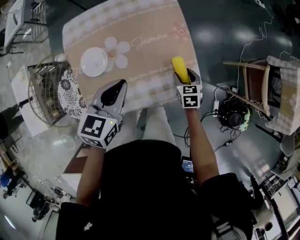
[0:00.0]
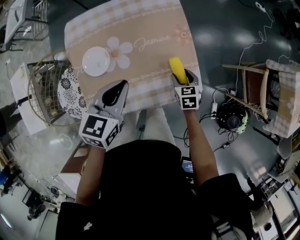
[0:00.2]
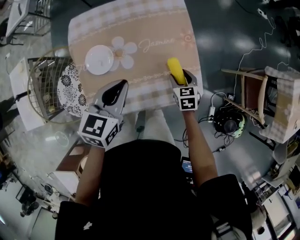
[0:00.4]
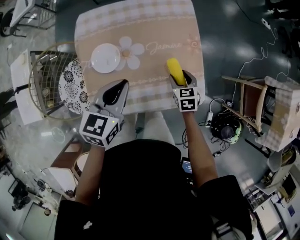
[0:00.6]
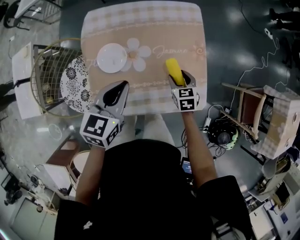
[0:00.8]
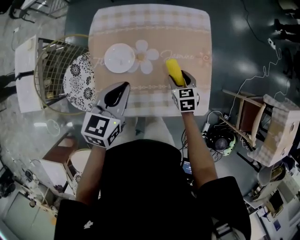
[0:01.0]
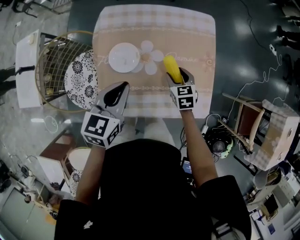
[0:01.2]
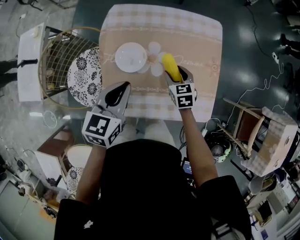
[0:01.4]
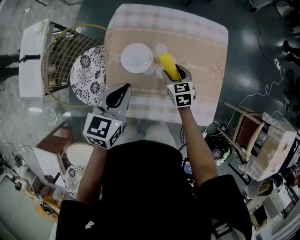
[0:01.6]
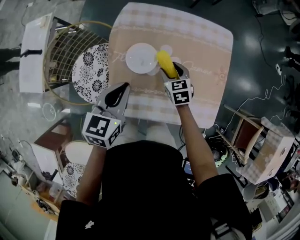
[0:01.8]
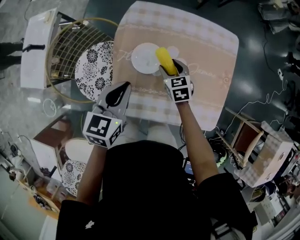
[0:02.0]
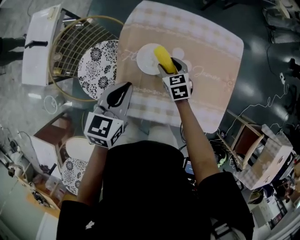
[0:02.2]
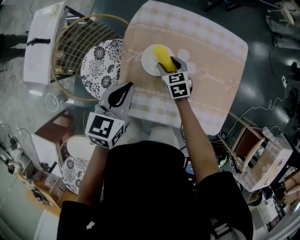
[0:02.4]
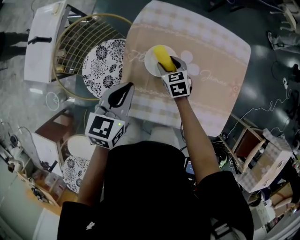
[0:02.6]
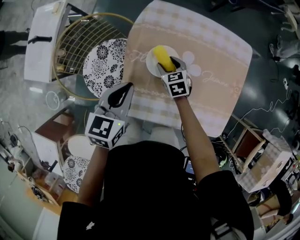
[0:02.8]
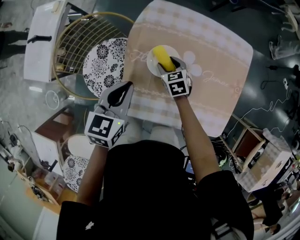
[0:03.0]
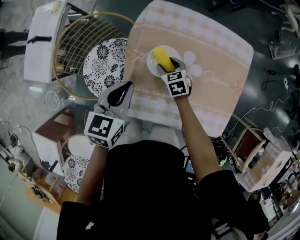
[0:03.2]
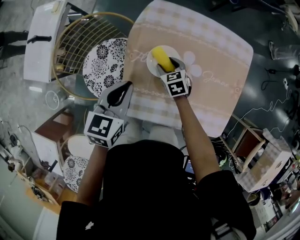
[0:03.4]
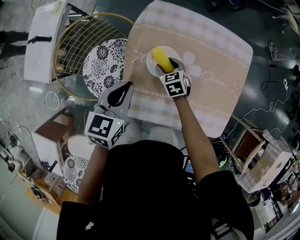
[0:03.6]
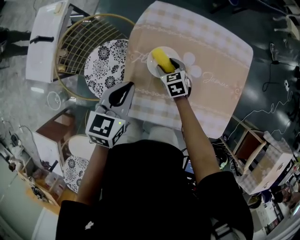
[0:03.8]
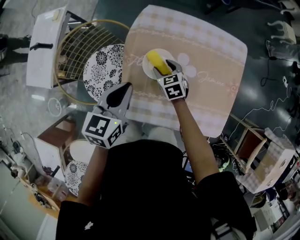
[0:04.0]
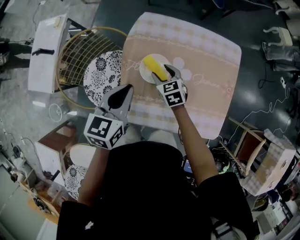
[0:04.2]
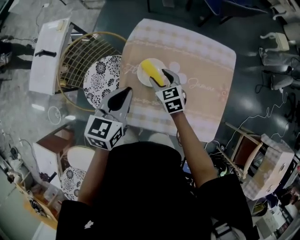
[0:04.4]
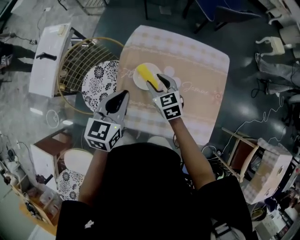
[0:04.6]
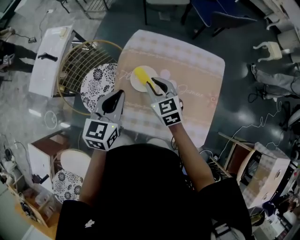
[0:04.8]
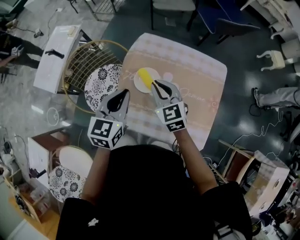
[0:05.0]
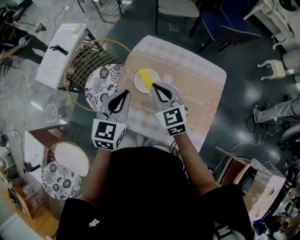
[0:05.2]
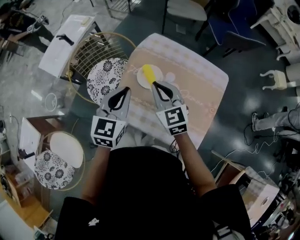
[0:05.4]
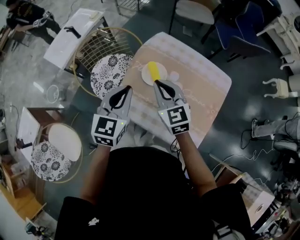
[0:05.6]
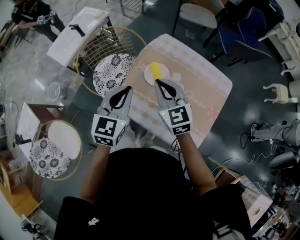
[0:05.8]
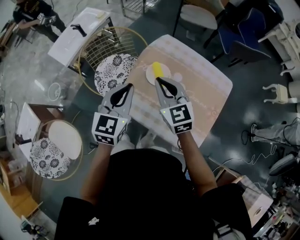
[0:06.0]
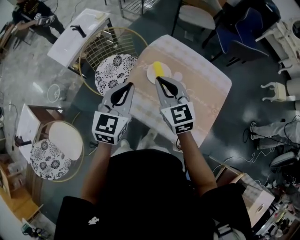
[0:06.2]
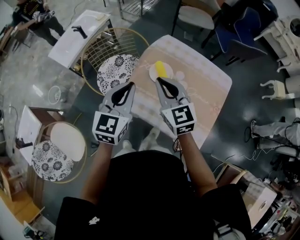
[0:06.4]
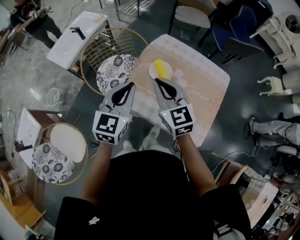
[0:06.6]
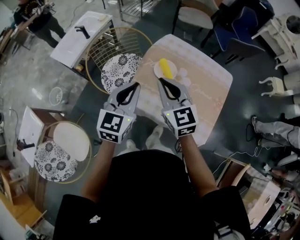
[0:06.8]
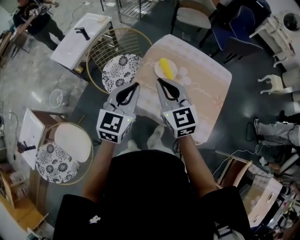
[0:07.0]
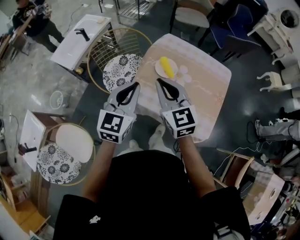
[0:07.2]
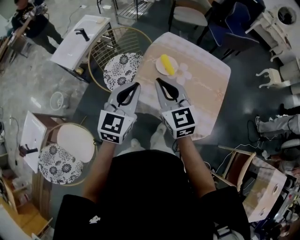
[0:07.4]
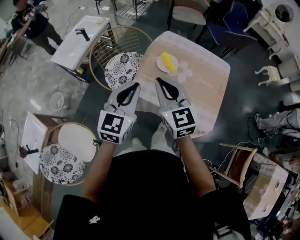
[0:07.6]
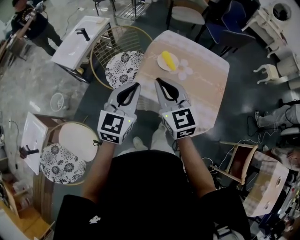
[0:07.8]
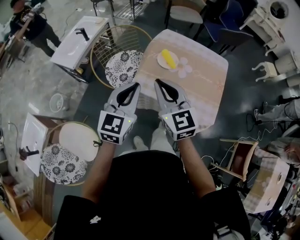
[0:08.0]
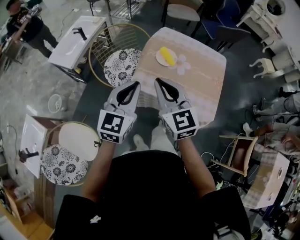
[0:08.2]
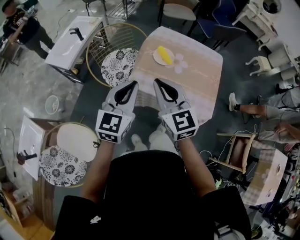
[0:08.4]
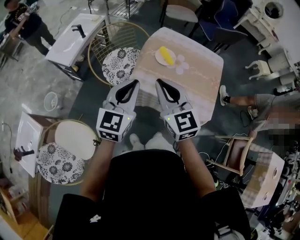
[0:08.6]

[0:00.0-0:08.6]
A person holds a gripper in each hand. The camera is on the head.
0.0 to 1.4 s: The two grippers go approximately 20 cm to the left. The right gripper swivels about 30 degrees.
1.4 to 2.8 s: The left gripper heads to the left, covering roughly 10 cm. Meanwhile the right gripper shifts some 20 cm to the left.
2.8 to 4.4 s: The left gripper is displaced upward by roughly 5 cm; the right gripper moves upward, about 10 cm.
4.4 to 5.8 s: The left gripper is displaced backward and upward by some 15 cm, and turns by roughly 30 degrees. The right gripper goes roughly 25 cm upward and backward, changes its angle by some 30 degrees, and closes.
5.8 to 7.2 s: The left gripper heads backward and to the left, covering roughly 10 cm. The right gripper moves backward, to the left and upward, roughly 15 cm.
7.2 to 8.6 s: The grippers both shift backward and to the left by approximately 10 cm.

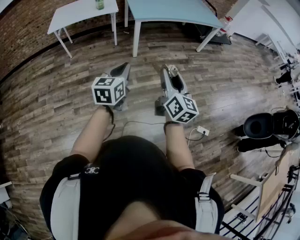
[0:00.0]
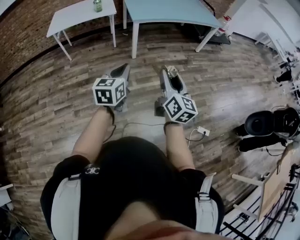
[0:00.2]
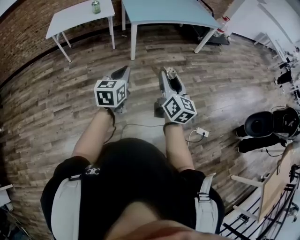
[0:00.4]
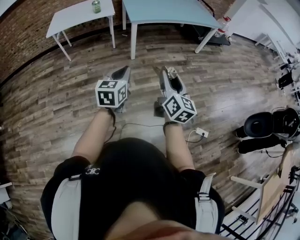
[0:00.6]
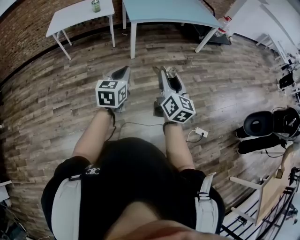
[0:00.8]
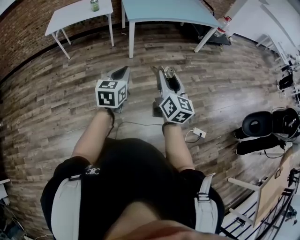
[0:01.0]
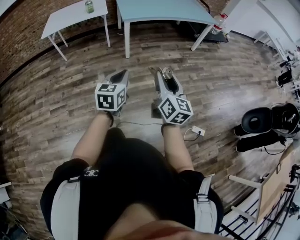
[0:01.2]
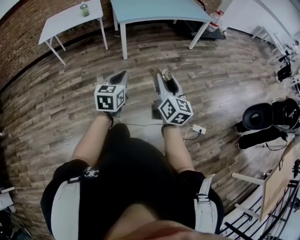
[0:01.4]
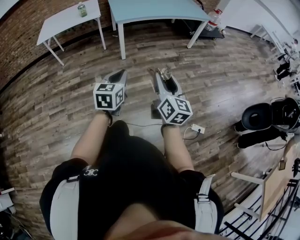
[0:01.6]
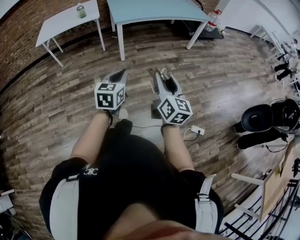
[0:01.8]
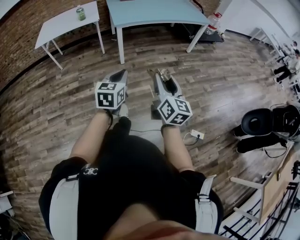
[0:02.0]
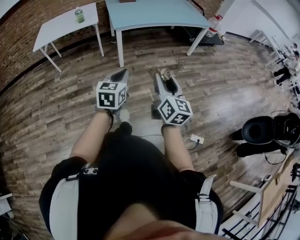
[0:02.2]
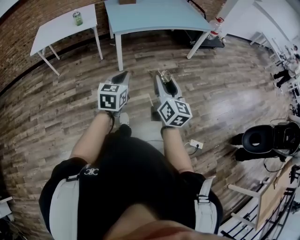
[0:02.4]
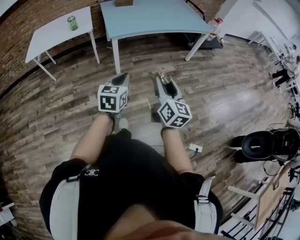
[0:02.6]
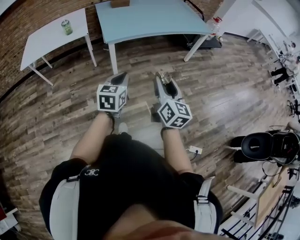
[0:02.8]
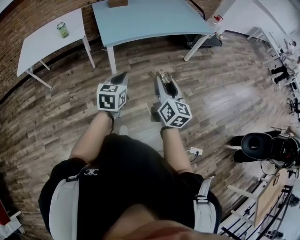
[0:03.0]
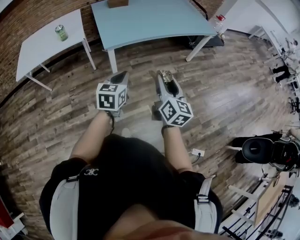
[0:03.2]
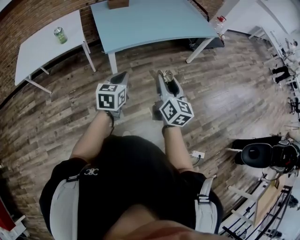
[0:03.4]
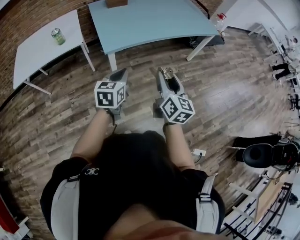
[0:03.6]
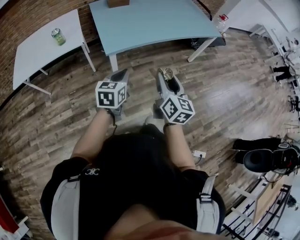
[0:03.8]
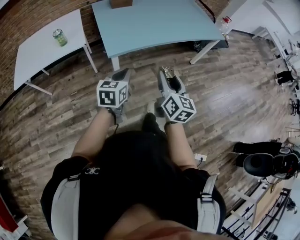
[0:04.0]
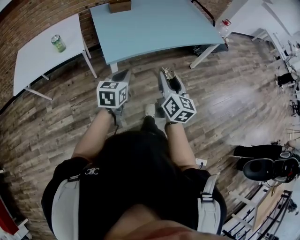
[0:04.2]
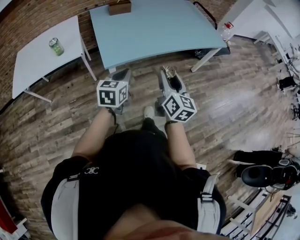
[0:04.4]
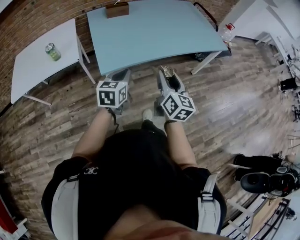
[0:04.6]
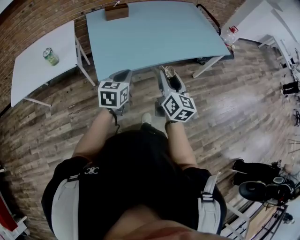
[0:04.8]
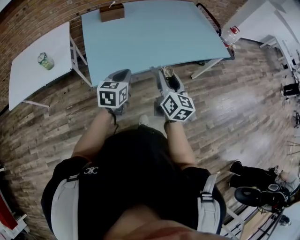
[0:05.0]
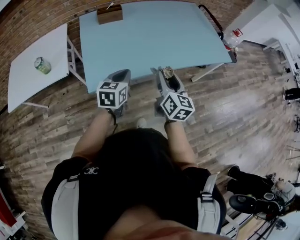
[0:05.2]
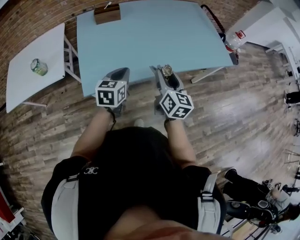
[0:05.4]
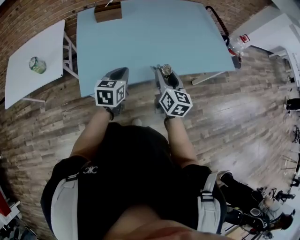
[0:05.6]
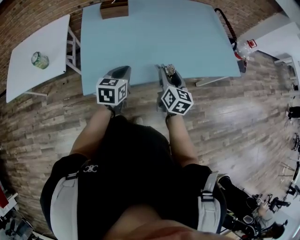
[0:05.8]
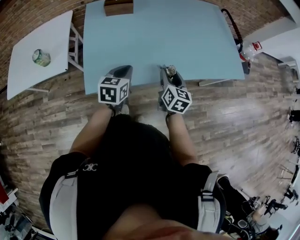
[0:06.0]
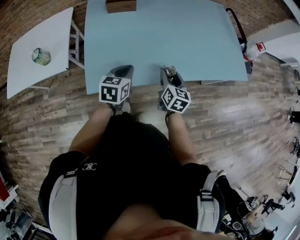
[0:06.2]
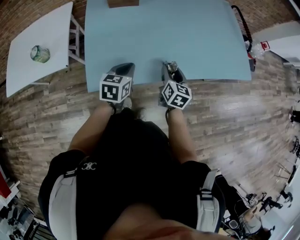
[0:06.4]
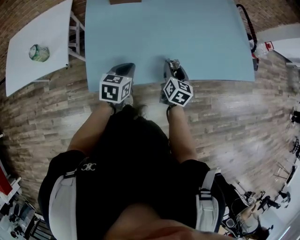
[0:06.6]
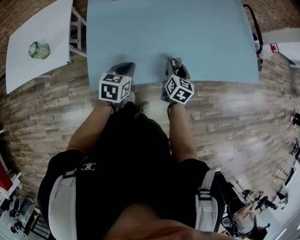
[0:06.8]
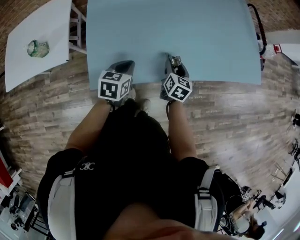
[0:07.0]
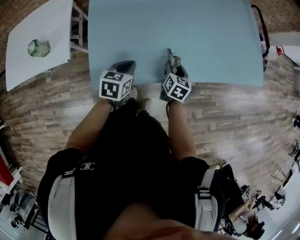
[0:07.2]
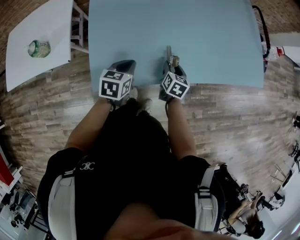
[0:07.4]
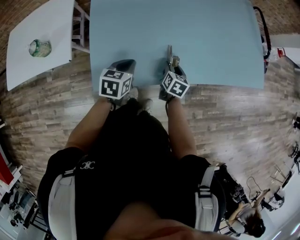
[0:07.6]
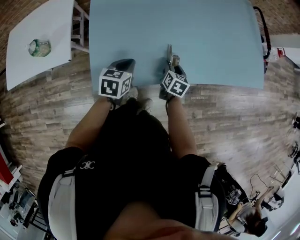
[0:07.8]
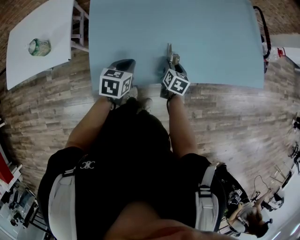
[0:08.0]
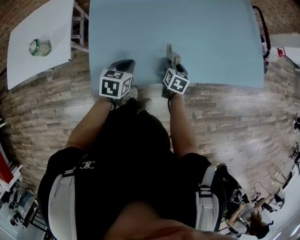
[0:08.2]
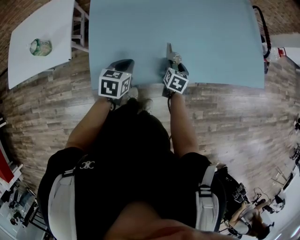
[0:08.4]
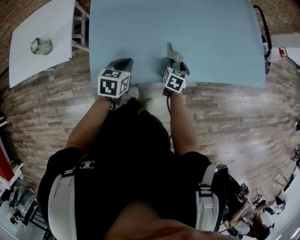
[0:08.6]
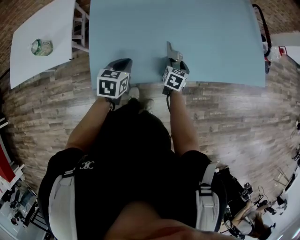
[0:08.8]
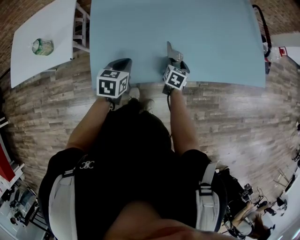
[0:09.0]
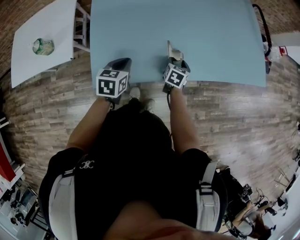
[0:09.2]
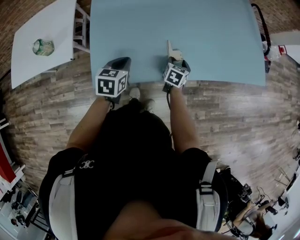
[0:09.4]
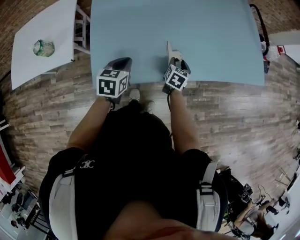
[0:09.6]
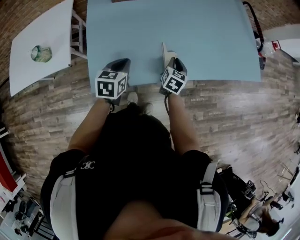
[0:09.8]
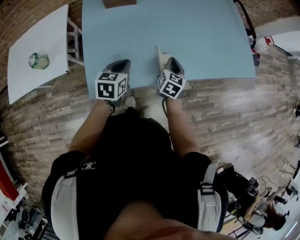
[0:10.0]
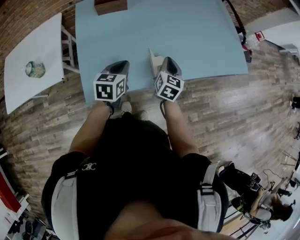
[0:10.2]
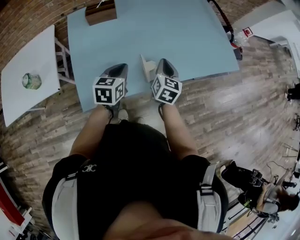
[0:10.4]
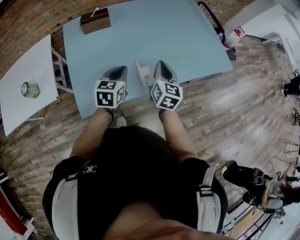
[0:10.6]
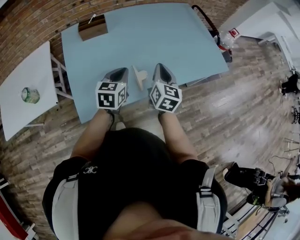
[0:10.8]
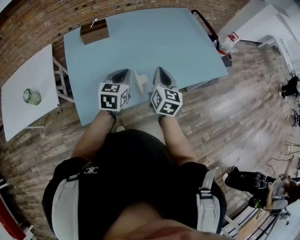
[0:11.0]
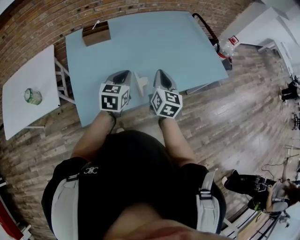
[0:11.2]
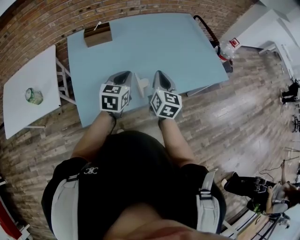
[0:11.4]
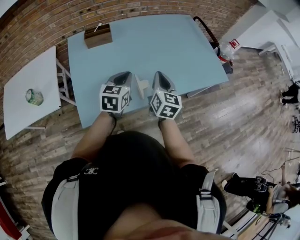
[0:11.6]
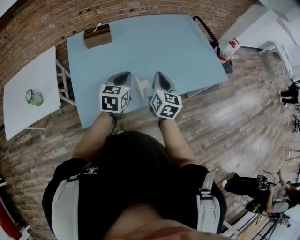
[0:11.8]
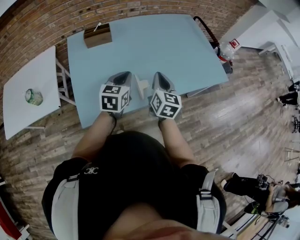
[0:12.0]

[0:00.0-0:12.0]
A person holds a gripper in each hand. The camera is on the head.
0.0 to 1.6 s: Both grippers travel together to the right, approximately 10 cm.
1.6 to 3.0 s: Both grippers travel together forward, some 30 cm.
3.0 to 4.4 s: The grippers both shift forward by some 25 cm.
4.4 to 6.0 s: The grippers both shift forward by some 30 cm.
6.0 to 7.6 s: The left gripper travels downward and to the left by some 10 cm; the right gripper heads downward, covering approximately 15 cm, and changes its angle by some 20 degrees.
7.6 to 9.0 s: The grippers make only small movements.
9.0 to 10.4 s: The left gripper travels upward and to the right by about 10 cm, while the right gripper shifts roughly 20 cm upward, changes its angle by approximately 30 degrees, and closes its fingers.
10.4 to 12.0 s: The two grippers go roughly 5 cm upward.

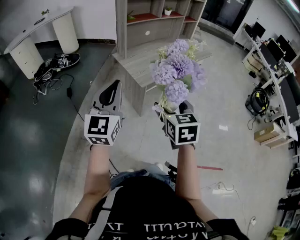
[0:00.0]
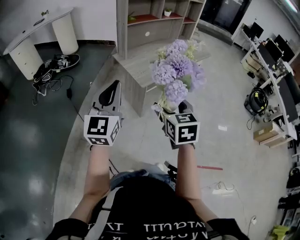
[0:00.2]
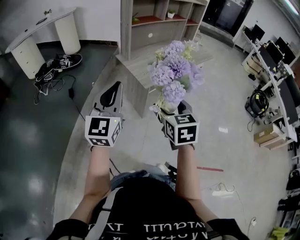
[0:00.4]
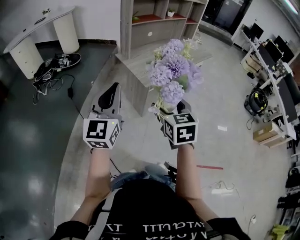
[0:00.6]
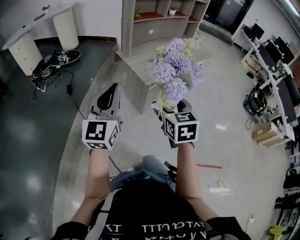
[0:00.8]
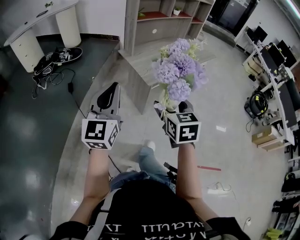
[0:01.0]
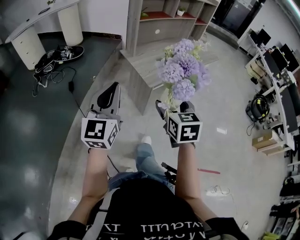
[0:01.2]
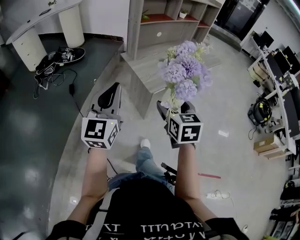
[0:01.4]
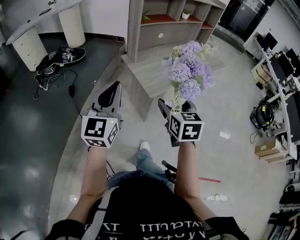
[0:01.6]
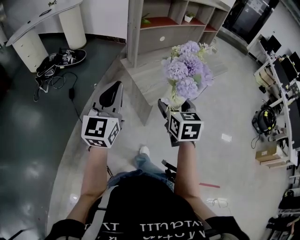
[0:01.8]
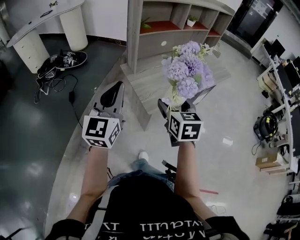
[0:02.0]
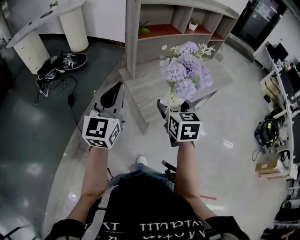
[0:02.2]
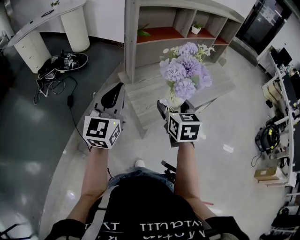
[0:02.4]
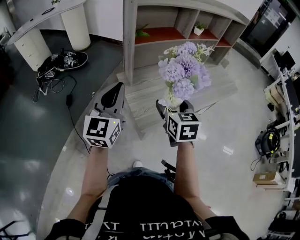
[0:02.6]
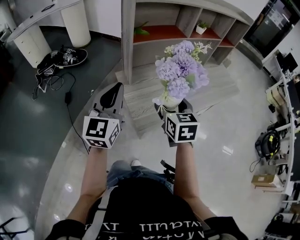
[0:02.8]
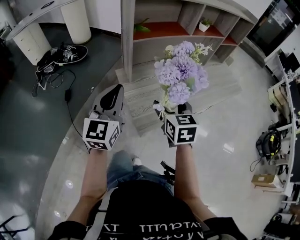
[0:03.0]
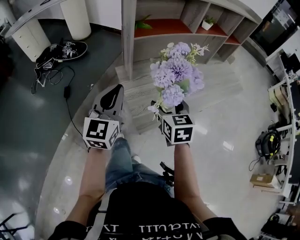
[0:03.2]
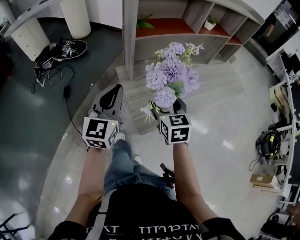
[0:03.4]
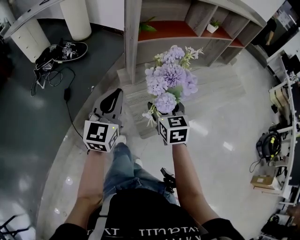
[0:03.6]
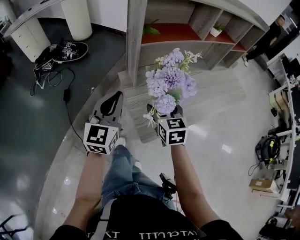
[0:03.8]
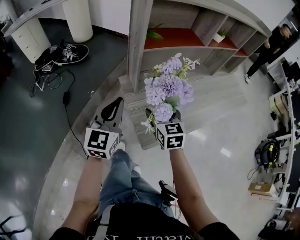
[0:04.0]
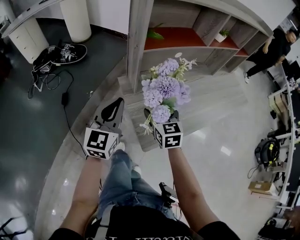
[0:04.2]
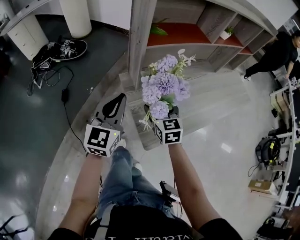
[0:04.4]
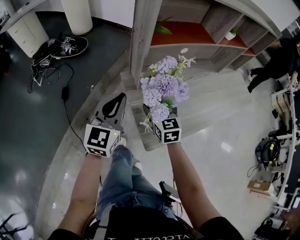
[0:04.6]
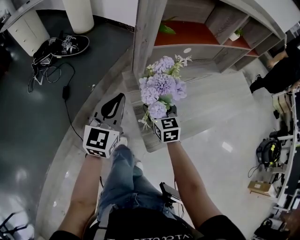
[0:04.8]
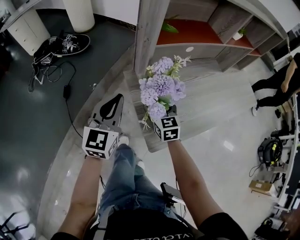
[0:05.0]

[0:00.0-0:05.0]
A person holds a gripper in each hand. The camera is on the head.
0.0 to 1.6 s: The right gripper shifts roughly 15 cm forward, while the left gripper goes roughly 10 cm forward and to the left.
1.6 to 3.4 s: Both grippers travel together forward, approximately 30 cm.
3.4 to 5.0 s: The left gripper travels forward and downward by roughly 10 cm. The right gripper shifts about 20 cm downward, forward and to the left.
